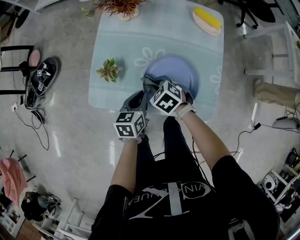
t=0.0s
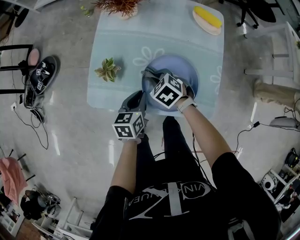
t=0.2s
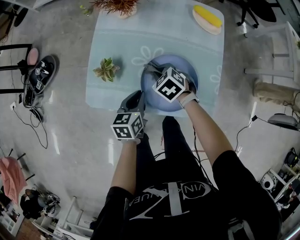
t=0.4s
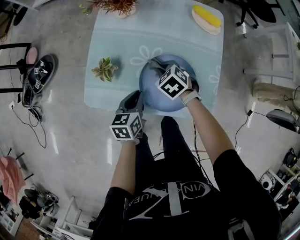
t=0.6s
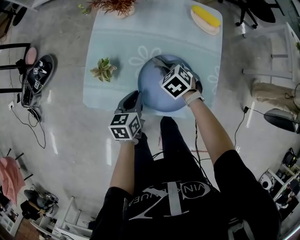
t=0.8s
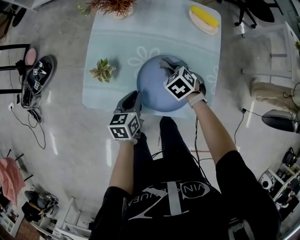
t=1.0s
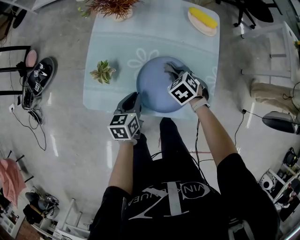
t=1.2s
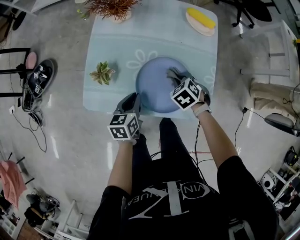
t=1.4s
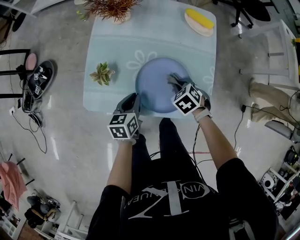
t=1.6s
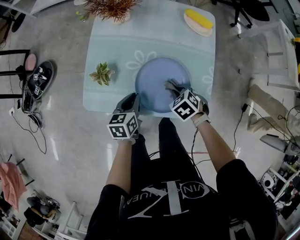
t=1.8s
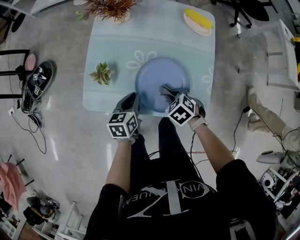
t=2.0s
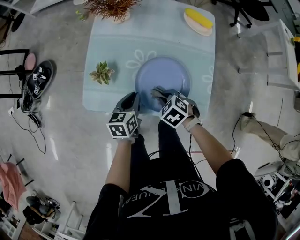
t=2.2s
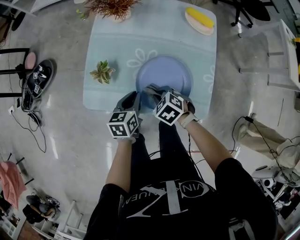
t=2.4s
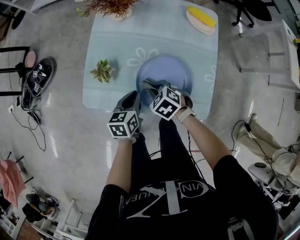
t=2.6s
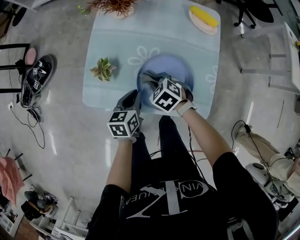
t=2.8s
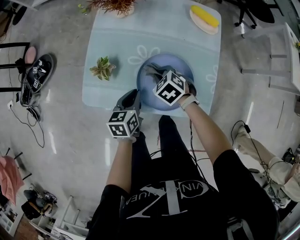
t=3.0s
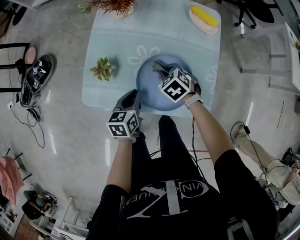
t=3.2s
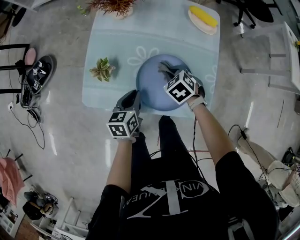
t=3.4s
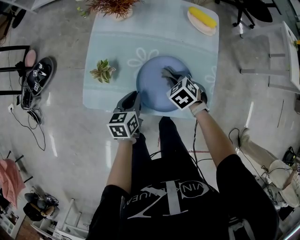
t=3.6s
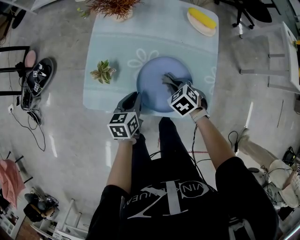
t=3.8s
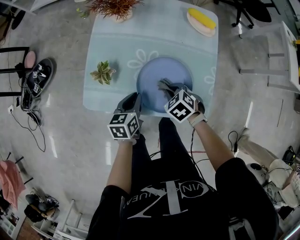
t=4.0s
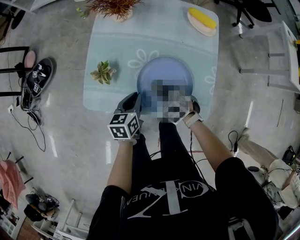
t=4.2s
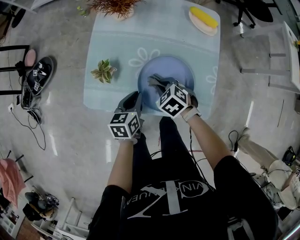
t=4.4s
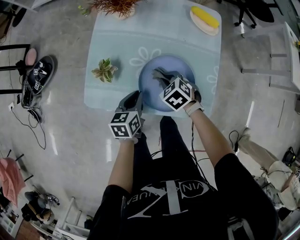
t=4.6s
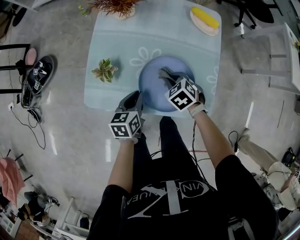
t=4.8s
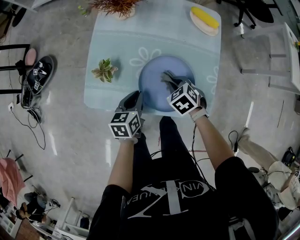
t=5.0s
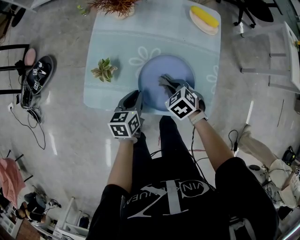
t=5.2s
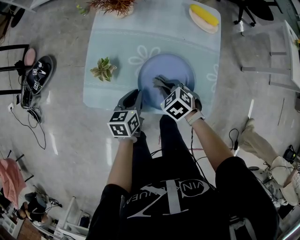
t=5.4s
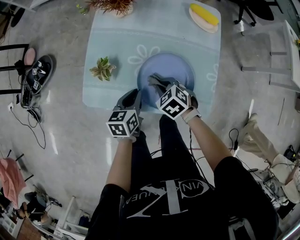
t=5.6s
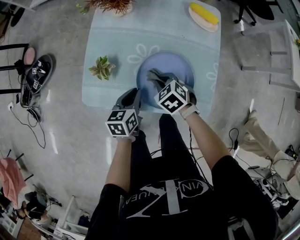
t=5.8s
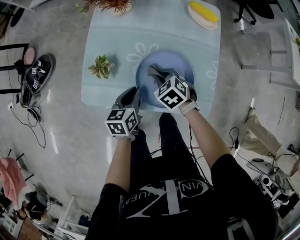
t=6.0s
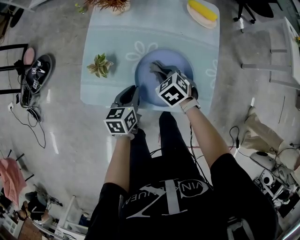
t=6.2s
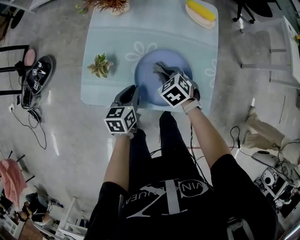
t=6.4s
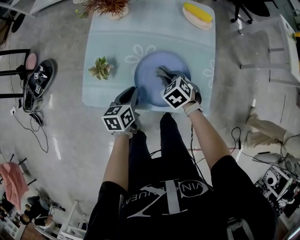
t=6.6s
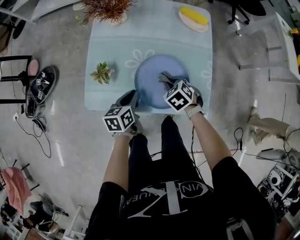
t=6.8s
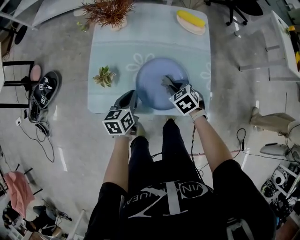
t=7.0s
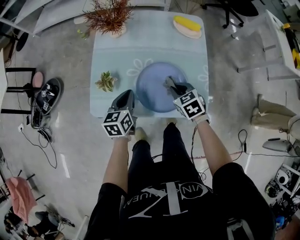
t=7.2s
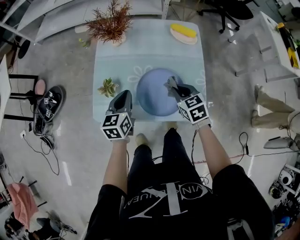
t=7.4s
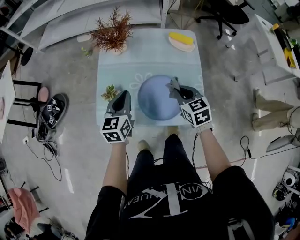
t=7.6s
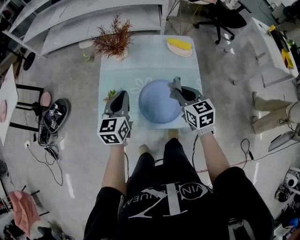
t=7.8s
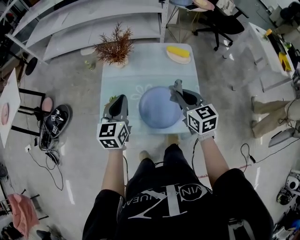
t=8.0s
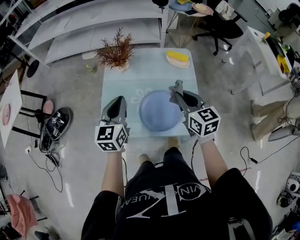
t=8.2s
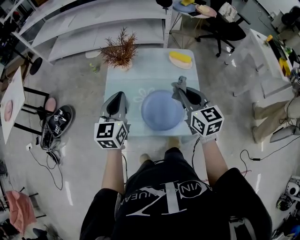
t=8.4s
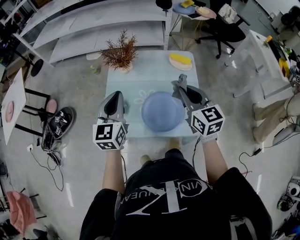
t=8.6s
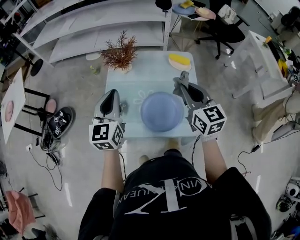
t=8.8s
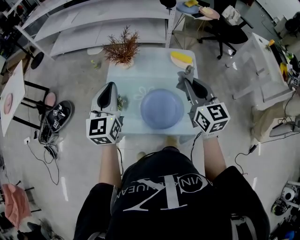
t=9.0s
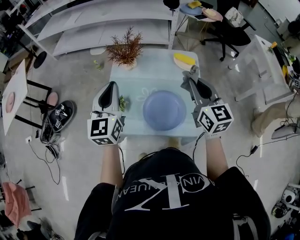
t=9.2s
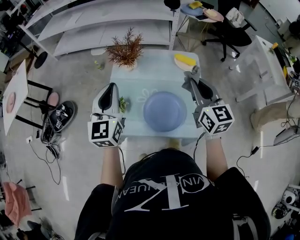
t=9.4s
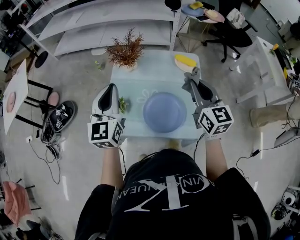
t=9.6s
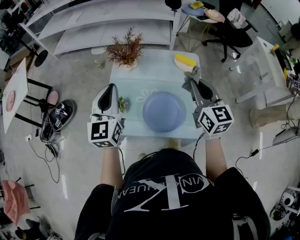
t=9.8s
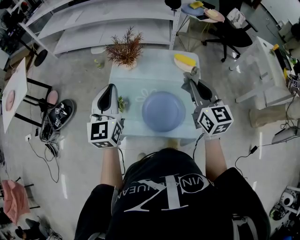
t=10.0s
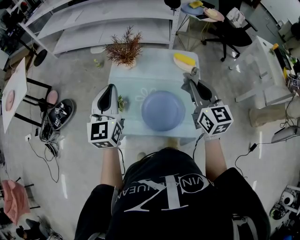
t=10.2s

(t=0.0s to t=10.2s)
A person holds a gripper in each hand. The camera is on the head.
t=0.0s - t=1.4s: The right gripper shifts about 15 cm to the right.
t=1.4s - t=3.0s: The right gripper heads to the left, covering roughly 10 cm.
t=4.4s - t=5.8s: The grippers stay close to where they were, moving slightly.
t=5.8s - t=7.2s: The left gripper goes some 5 cm upward. Meanwhile the right gripper travels to the right and upward by some 10 cm, and rotates about 20 degrees.
t=7.2s - t=8.8s: The two grippers go about 30 cm upward. The right gripper tilts its fingers approximately 40 degrees upward. Meanwhile the left gripper rotates about 40 degrees.
t=8.8s - t=10.2s: There are only small adjustments of the grippers.

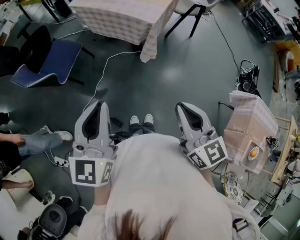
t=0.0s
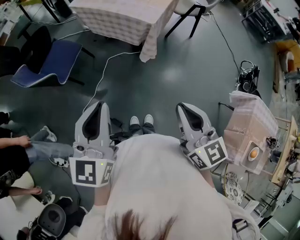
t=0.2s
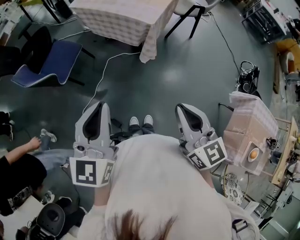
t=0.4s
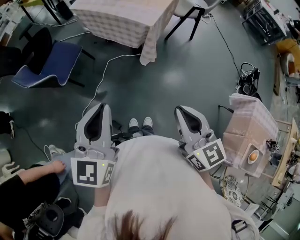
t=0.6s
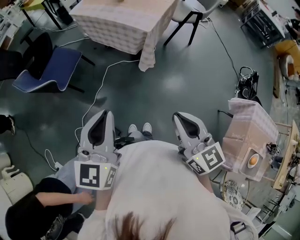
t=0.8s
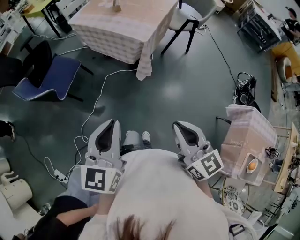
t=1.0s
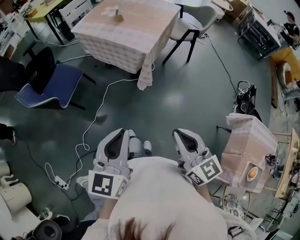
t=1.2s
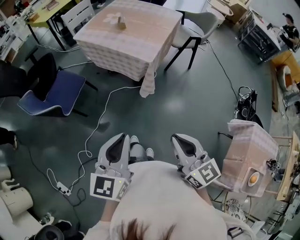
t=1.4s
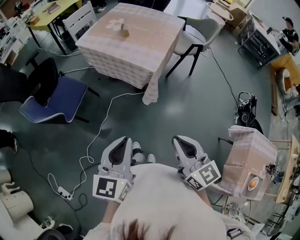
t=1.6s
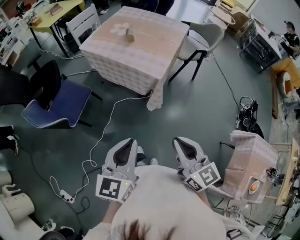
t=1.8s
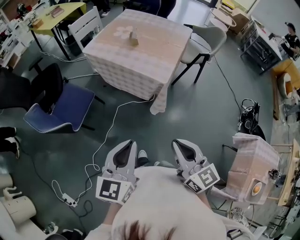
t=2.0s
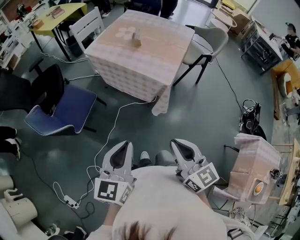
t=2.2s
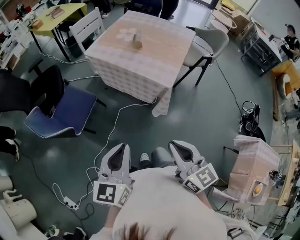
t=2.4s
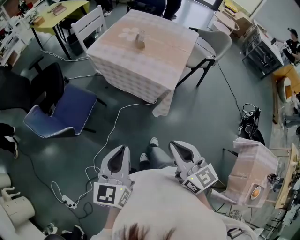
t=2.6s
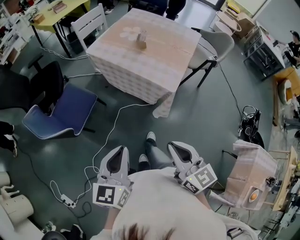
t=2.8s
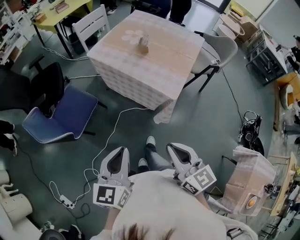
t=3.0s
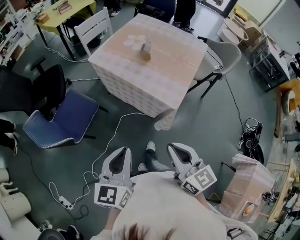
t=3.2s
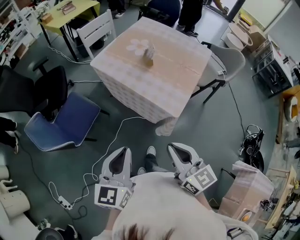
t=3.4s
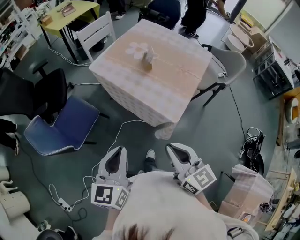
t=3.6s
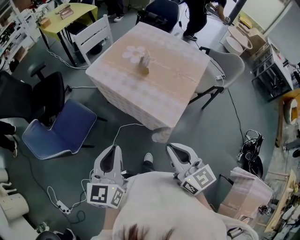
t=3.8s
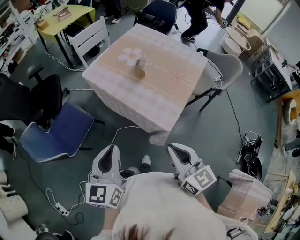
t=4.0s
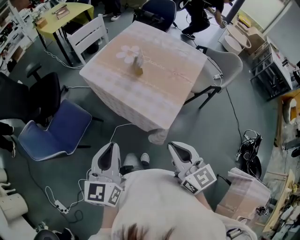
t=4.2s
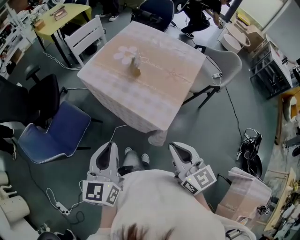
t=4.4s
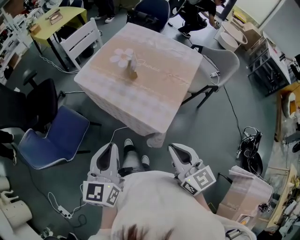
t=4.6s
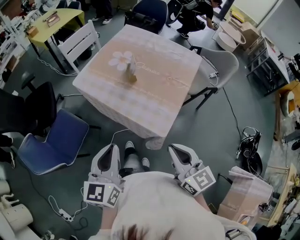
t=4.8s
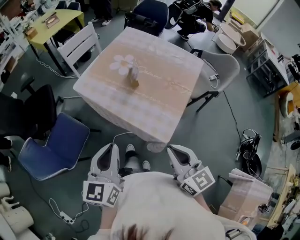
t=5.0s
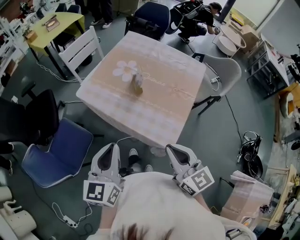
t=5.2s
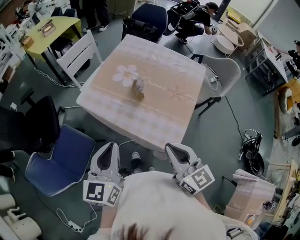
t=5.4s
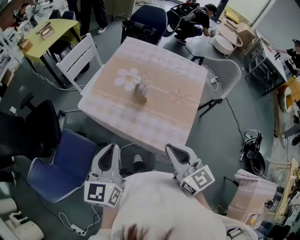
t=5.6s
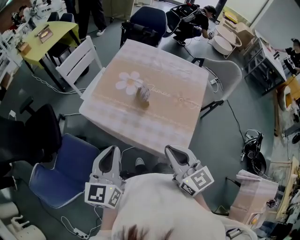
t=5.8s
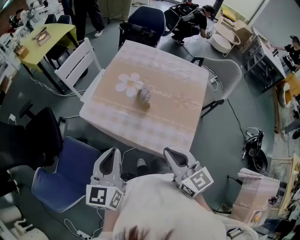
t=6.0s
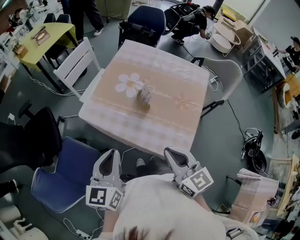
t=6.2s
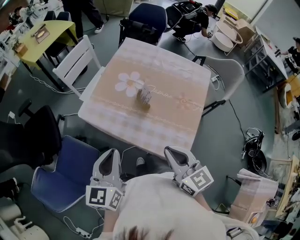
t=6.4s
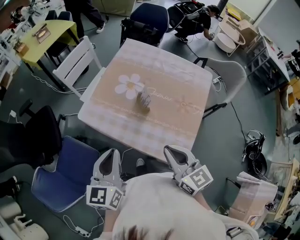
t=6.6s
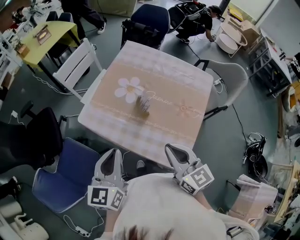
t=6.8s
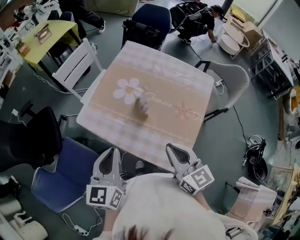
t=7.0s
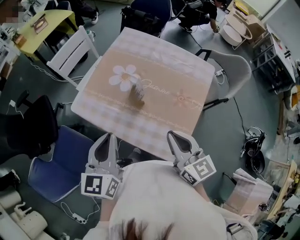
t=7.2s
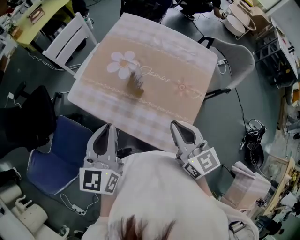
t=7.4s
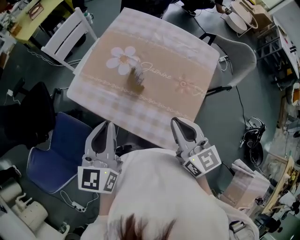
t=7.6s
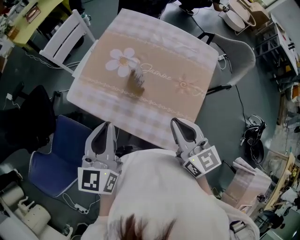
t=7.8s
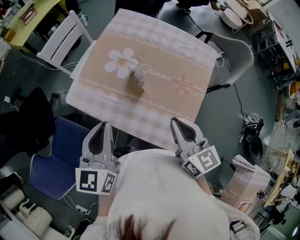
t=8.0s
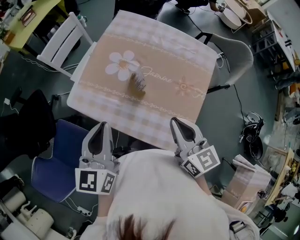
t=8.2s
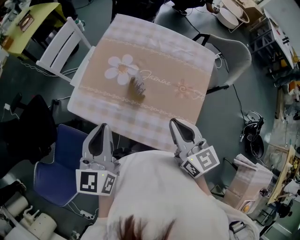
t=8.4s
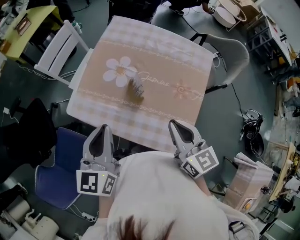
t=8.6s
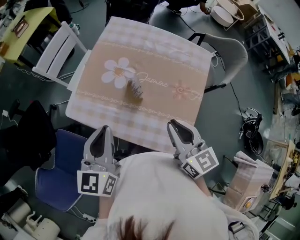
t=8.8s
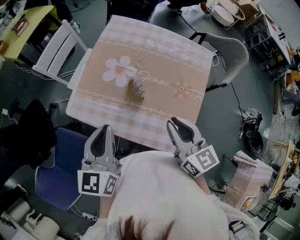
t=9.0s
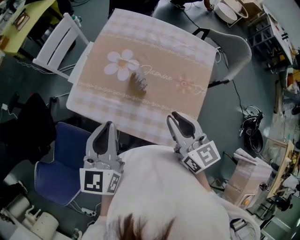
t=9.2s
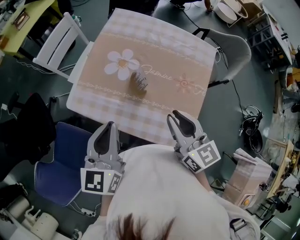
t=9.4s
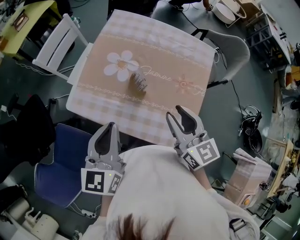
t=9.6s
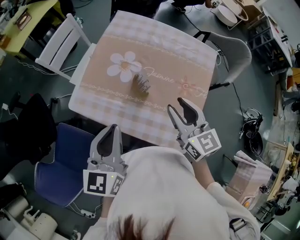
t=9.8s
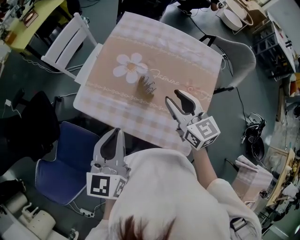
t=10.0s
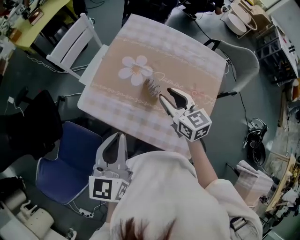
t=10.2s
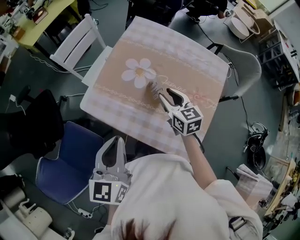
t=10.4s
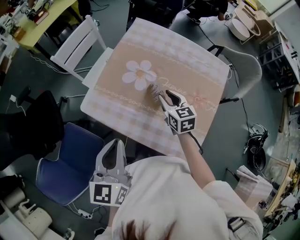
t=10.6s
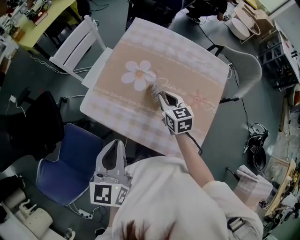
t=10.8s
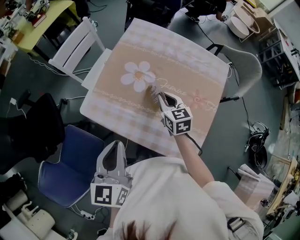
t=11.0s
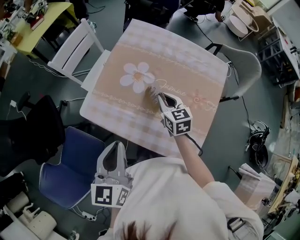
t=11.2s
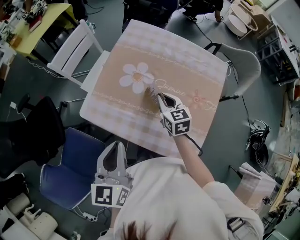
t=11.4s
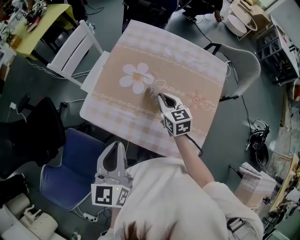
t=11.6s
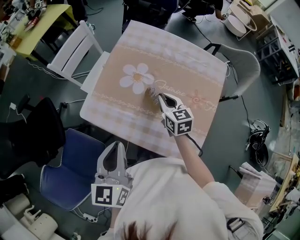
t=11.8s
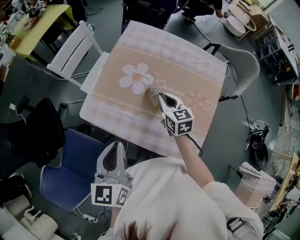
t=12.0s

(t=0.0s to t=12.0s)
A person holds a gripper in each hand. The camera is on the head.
t=0.0s - t=1.6s: The left gripper moves forward and to the right, roughly 10 cm. Meanwhile the right gripper heads forward, covering about 5 cm.
t=1.6s - t=3.0s: The two grippers go some 20 cm forward and to the left.
t=3.0s - t=4.4s: Both grippers move forward and to the right, some 20 cm.
t=4.4s - t=6.0s: The left gripper shifts roughly 20 cm forward. The right gripper moves forward and to the left, some 20 cm.
t=6.0s - t=7.6s: The right gripper is displaced to the right and forward by about 15 cm; the left gripper heads forward and to the right, covering some 10 cm.
t=7.6s - t=9.0s: The left gripper moves forward, roughly 5 cm.
t=9.0s - t=10.4s: The right gripper is displaced forward and downward by some 20 cm, and opens up.
t=10.4s - t=12.0s: The right gripper closes its fingers.

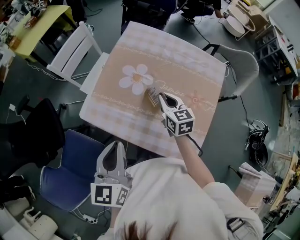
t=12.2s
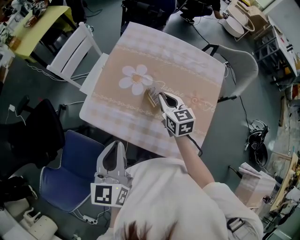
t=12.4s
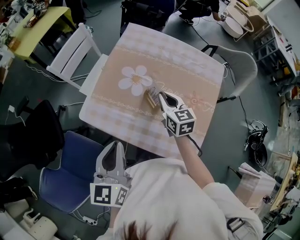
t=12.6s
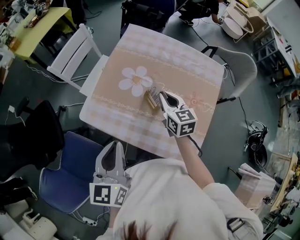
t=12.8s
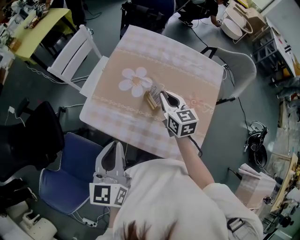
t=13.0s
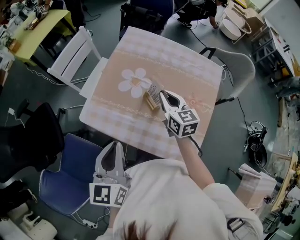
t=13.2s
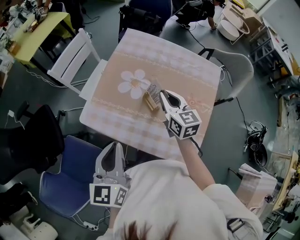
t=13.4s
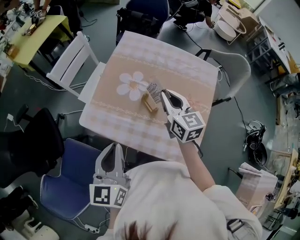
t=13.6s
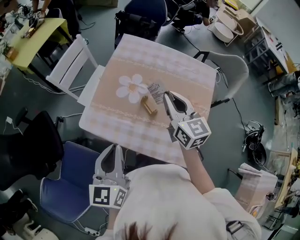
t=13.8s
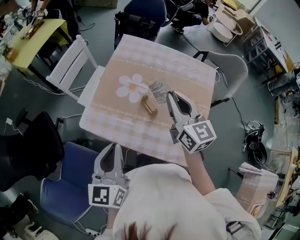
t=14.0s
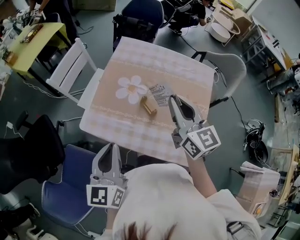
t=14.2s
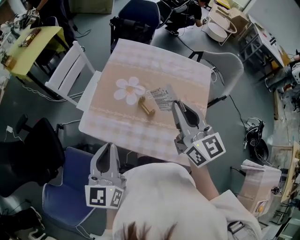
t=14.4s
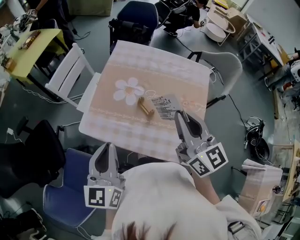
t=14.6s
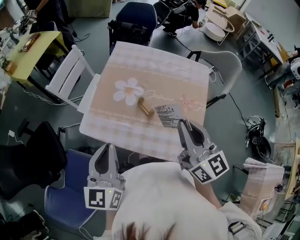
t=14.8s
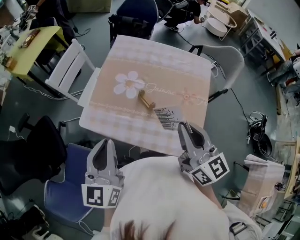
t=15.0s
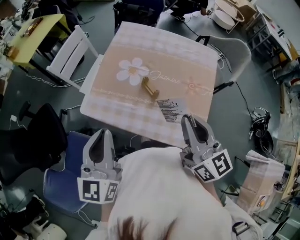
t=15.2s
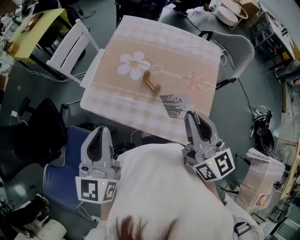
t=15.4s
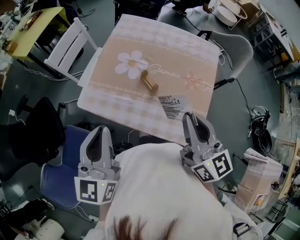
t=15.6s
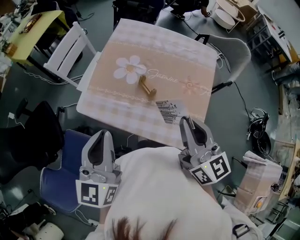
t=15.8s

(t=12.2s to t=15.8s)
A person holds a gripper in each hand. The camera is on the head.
t=12.2s - t=14.0s: The right gripper travels upward by roughly 20 cm, and turns by approximately 20 degrees.
t=14.0s - t=15.8s: The right gripper is displaced backward by some 15 cm.
